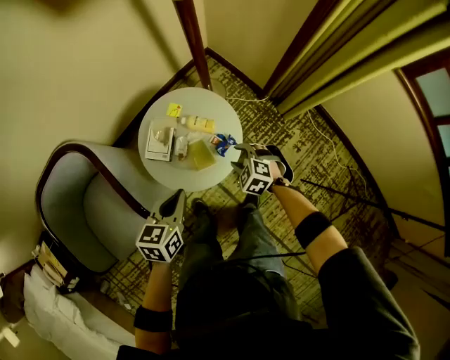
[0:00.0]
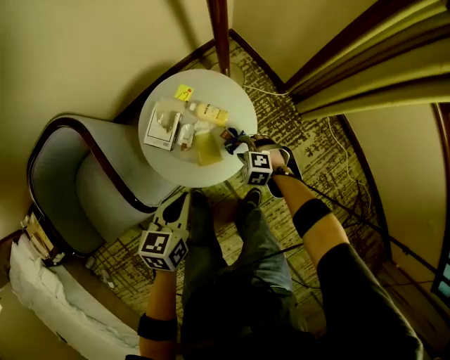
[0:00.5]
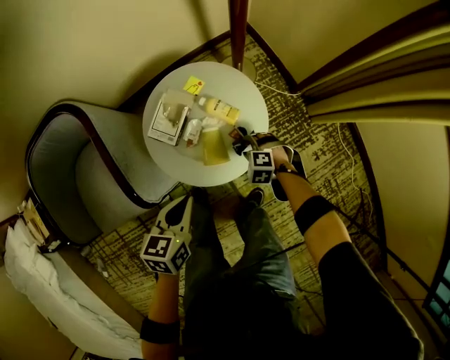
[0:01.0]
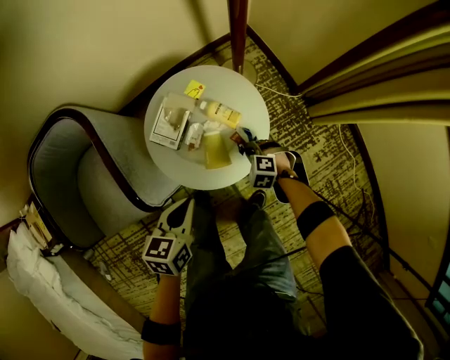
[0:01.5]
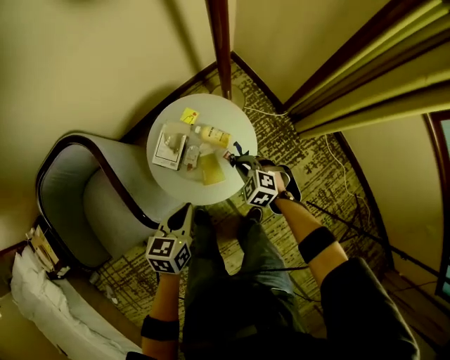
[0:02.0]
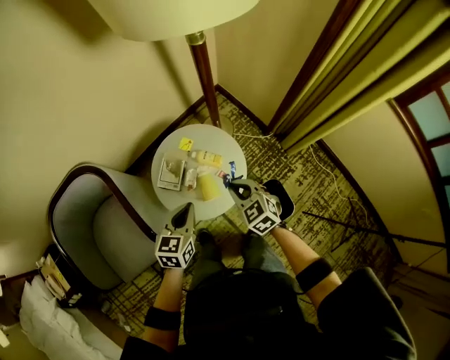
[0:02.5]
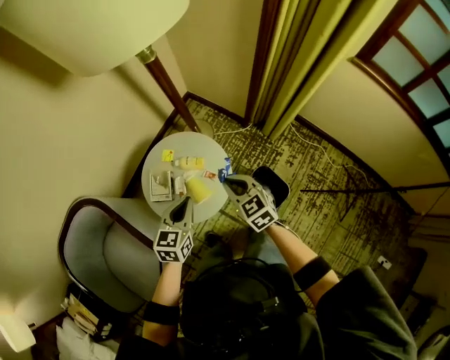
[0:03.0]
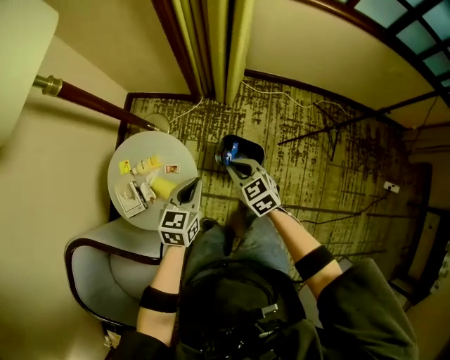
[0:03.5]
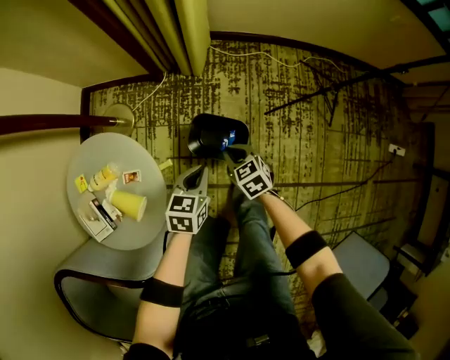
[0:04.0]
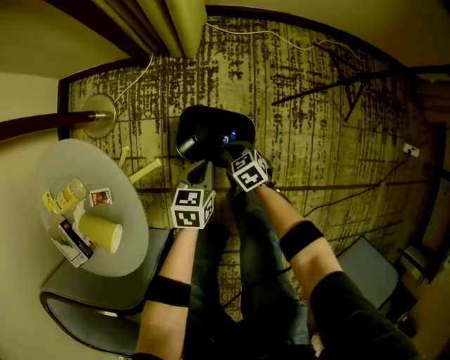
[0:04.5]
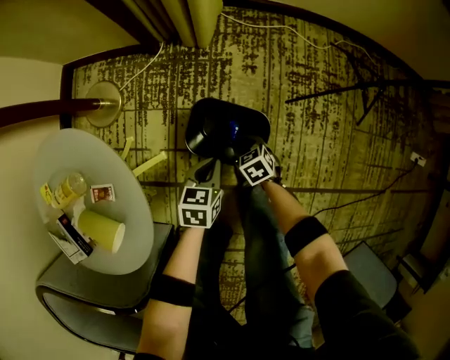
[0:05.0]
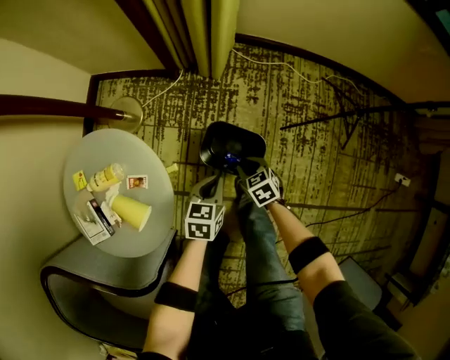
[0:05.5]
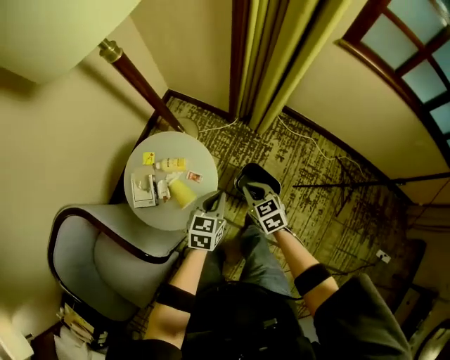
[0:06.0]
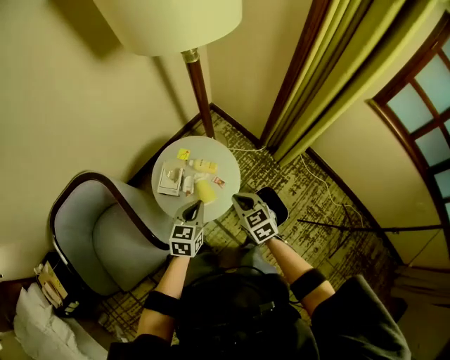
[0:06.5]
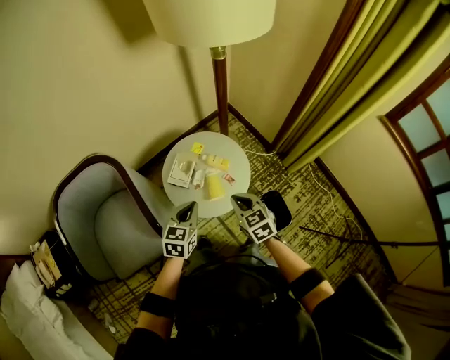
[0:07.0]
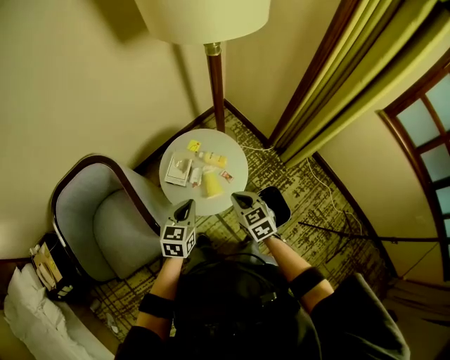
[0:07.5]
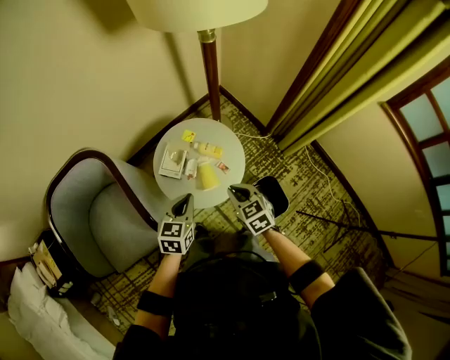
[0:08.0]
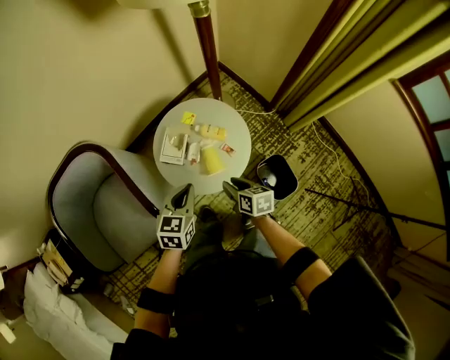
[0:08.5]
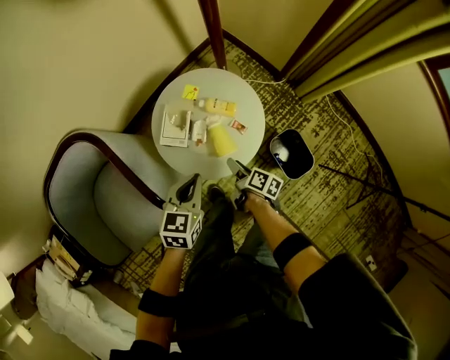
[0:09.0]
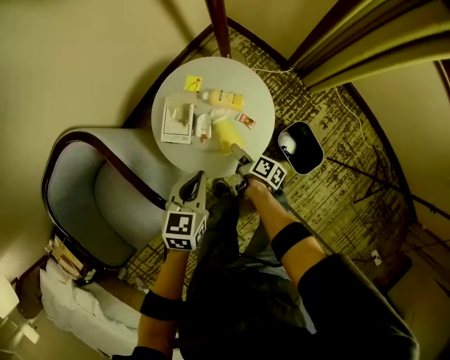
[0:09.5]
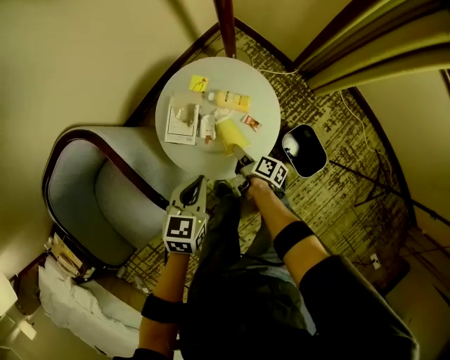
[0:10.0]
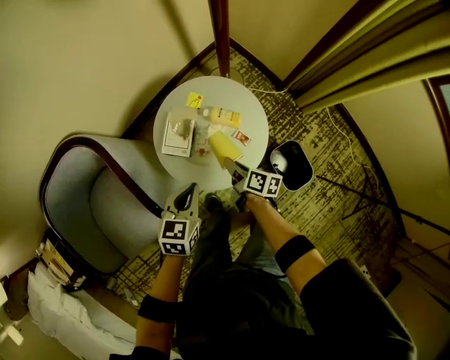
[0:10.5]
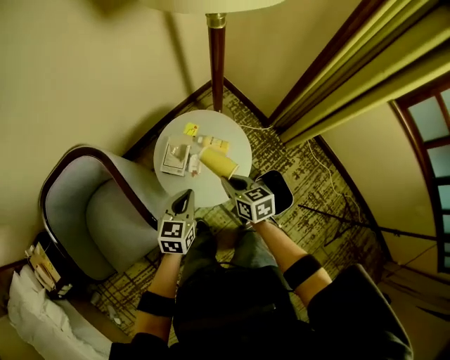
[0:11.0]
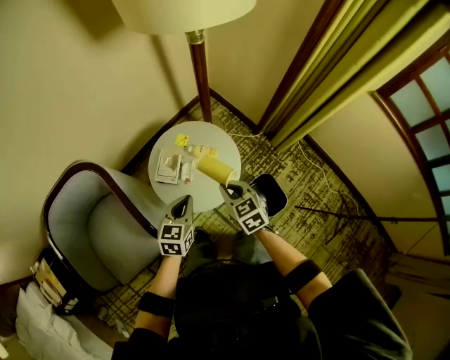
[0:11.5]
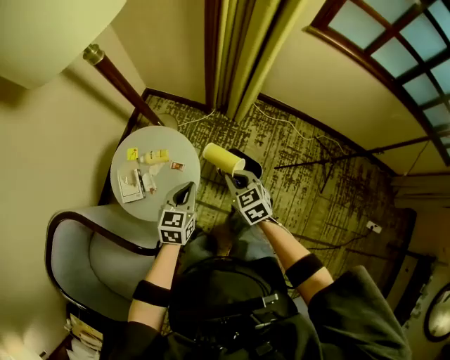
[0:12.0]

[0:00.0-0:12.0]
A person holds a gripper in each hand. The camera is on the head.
0.0 to 2.0 s: The right gripper is displaced forward by some 5 cm, reaches some 15 cm downward, then returns, and closes. The left gripper shifts some 5 cm downward.
2.0 to 4.0 s: The left gripper changes place by some 40 cm, and swivels about 60 degrees; the right gripper travels upward and back again, approximately 25 cm each way, and rolls clockwise, seen from behind, by some 70 degrees.
4.0 to 6.0 s: The grippers both shift upward and to the left by roughly 25 cm. The left gripper rotates approximately 20 degrees. Meanwhile the right gripper changes its angle by some 20 degrees, and opens, then closes again.
6.0 to 8.0 s: The left gripper shifts by some 25 cm, and swivels about 30 degrees. The right gripper changes place by roughly 20 cm, and rotates about 30 degrees.
8.0 to 10.0 s: The right gripper moves downward, roughly 30 cm, rotates around the line of its fingers by approximately 90 degrees, clockwise from behind, and opens, then closes again. Meanwhile the left gripper travels downward by approximately 10 cm.
10.0 to 12.0 s: The right gripper heads upward, covering some 25 cm, and rotates around the line of its fingers by about 70 degrees, counterclockwise from behind. The left gripper moves about 25 cm, and swivels some 30 degrees.

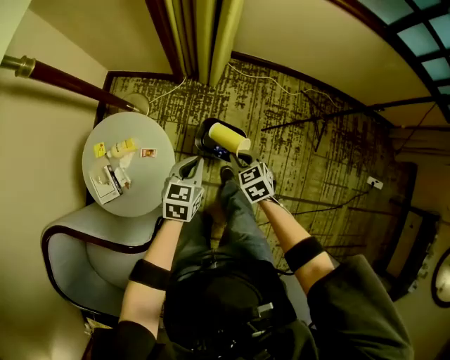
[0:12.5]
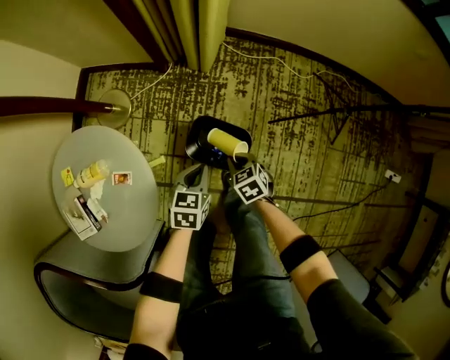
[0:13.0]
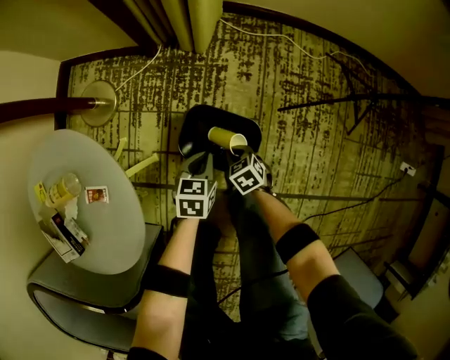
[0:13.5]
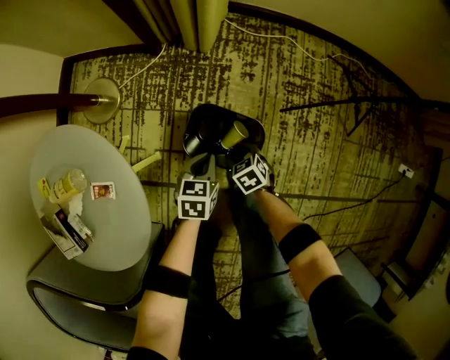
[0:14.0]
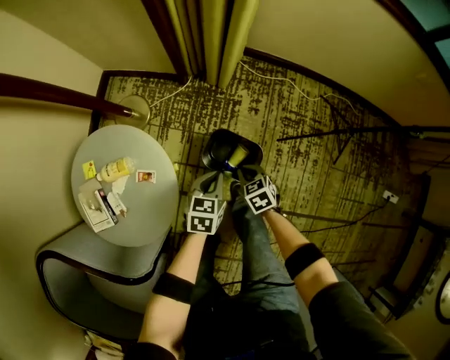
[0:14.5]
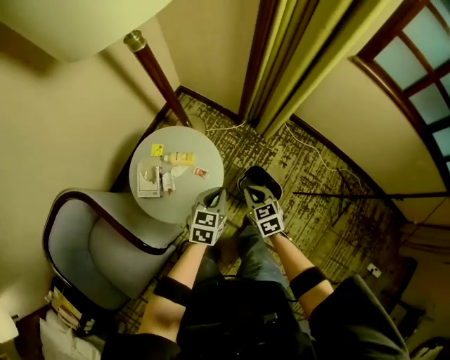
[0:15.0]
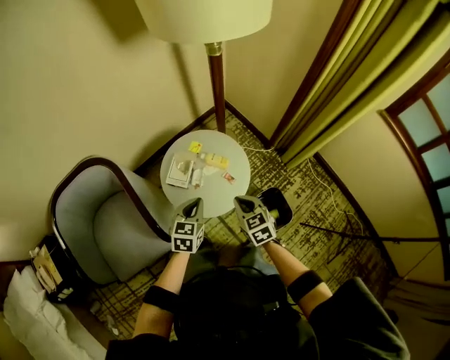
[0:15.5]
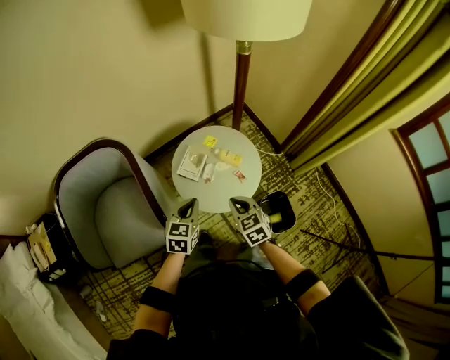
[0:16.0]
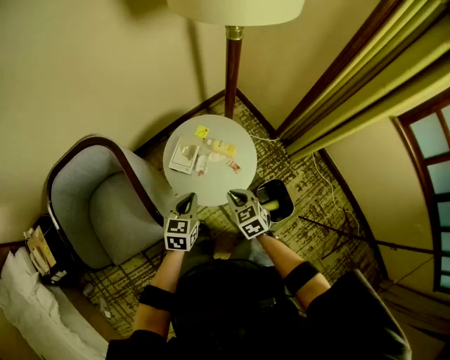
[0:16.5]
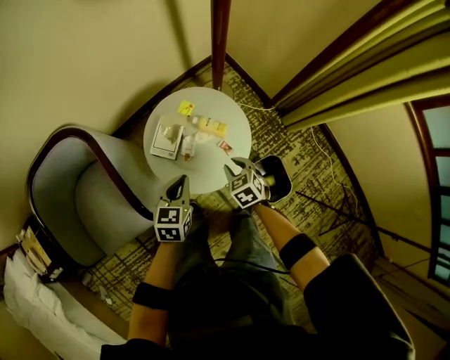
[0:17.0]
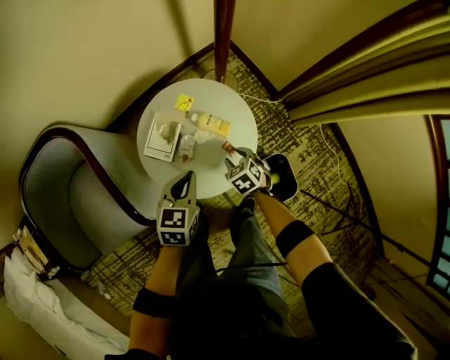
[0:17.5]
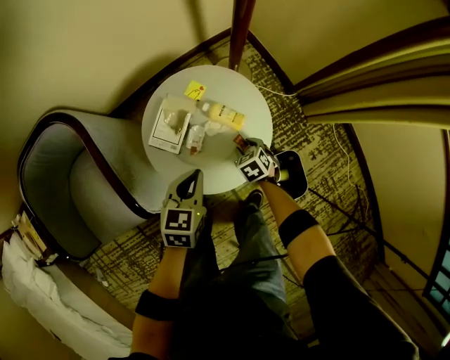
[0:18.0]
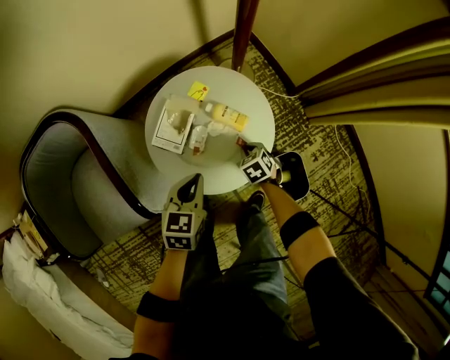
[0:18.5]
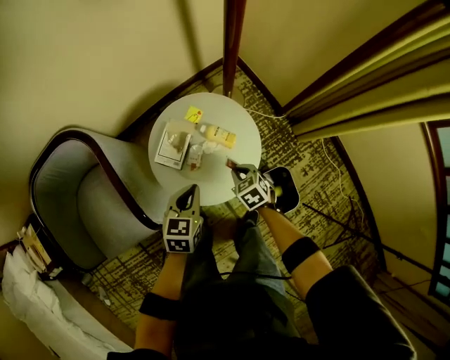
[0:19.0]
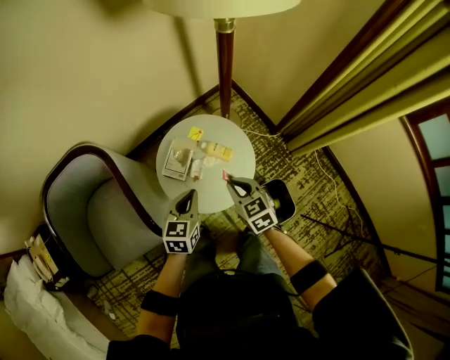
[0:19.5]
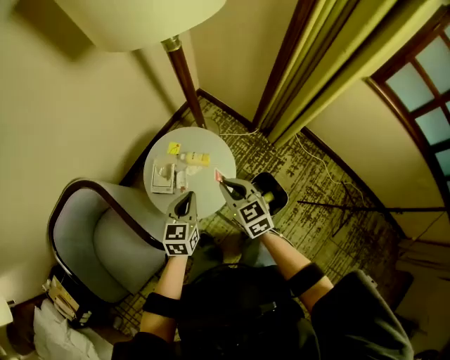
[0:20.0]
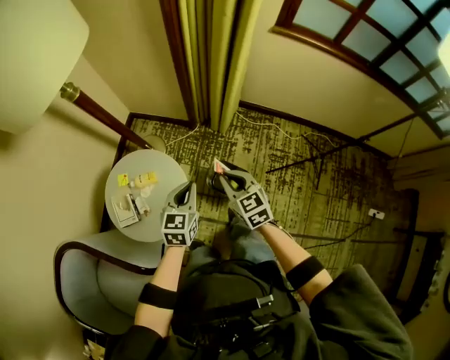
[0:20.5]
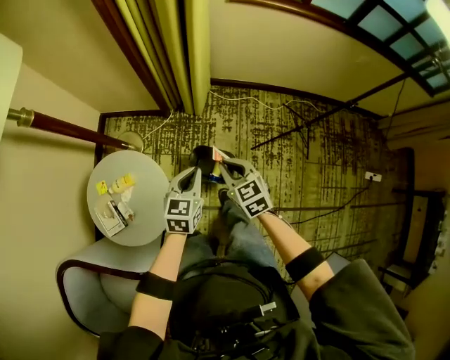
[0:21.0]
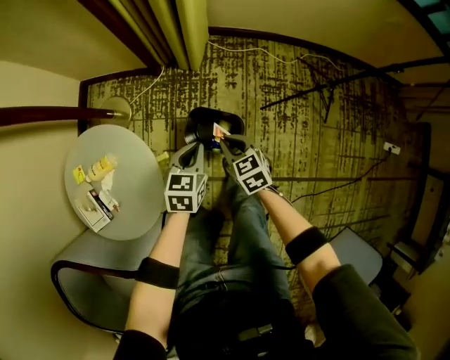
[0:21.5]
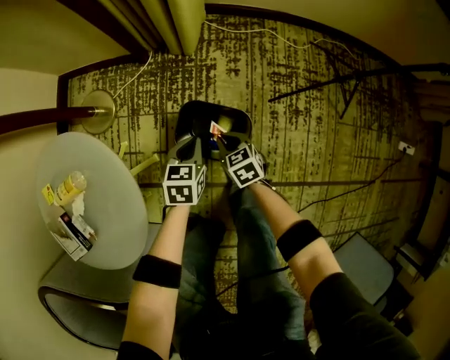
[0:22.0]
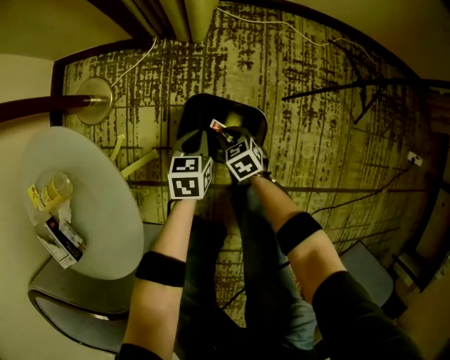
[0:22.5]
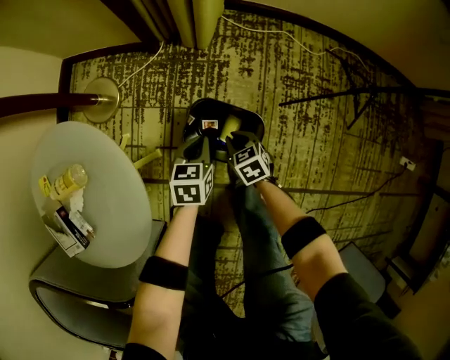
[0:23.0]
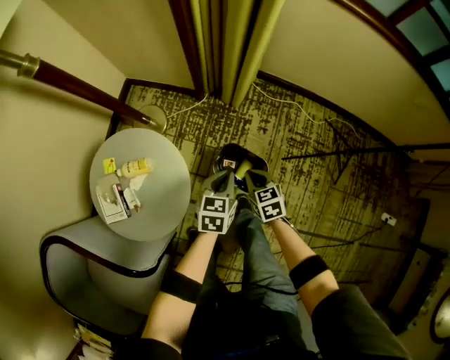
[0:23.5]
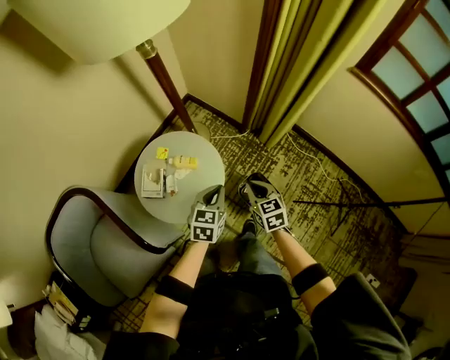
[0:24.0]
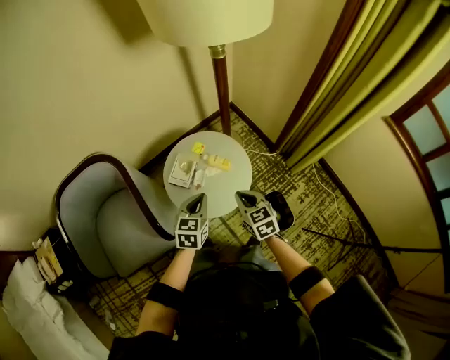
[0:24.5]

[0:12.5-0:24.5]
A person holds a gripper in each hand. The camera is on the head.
12.5 to 14.5 s: The two grippers go roughly 20 cm downward. The right gripper opens, then closes once more.
14.5 to 16.5 s: The right gripper moves some 50 cm, and swivels some 50 degrees. Meanwhile the left gripper shifts by approximately 50 cm, and turns by roughly 50 degrees.
16.5 to 18.5 s: The left gripper heads downward and forward, covering roughly 15 cm. Meanwhile the right gripper moves downward, some 30 cm, swivels roughly 20 degrees, and opens, then closes once more.
18.5 to 20.5 s: The right gripper goes approximately 35 cm upward, and tips its fingers upward by about 40 degrees; the left gripper shifts by about 35 cm, and turns by approximately 40 degrees.
20.5 to 22.5 s: The two grippers go some 60 cm downward. The left gripper rotates some 20 degrees. Meanwhile the right gripper changes its angle by approximately 30 degrees.
22.5 to 24.5 s: Both grippers move upward, approximately 60 cm. The left gripper turns by roughly 50 degrees. Meanwhile the right gripper changes its angle by roughly 50 degrees.

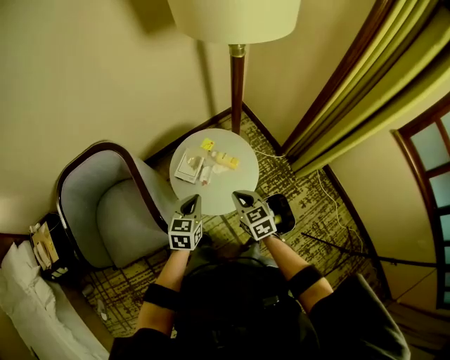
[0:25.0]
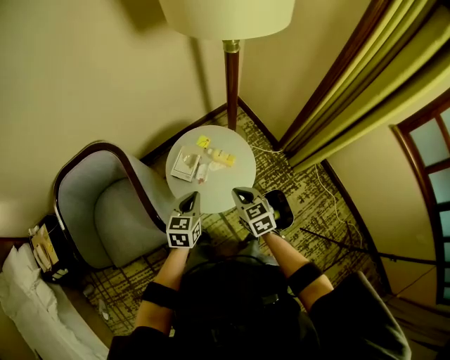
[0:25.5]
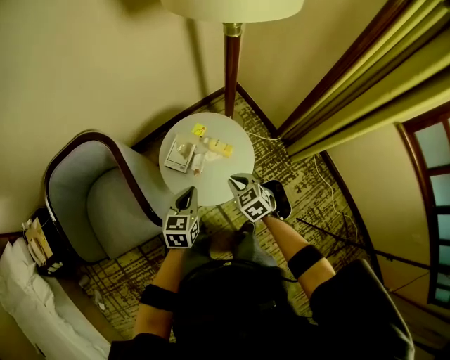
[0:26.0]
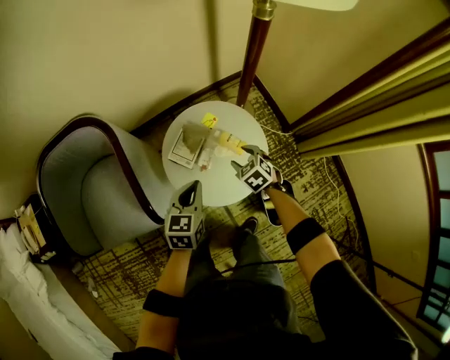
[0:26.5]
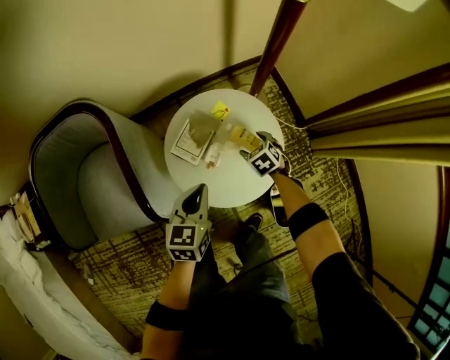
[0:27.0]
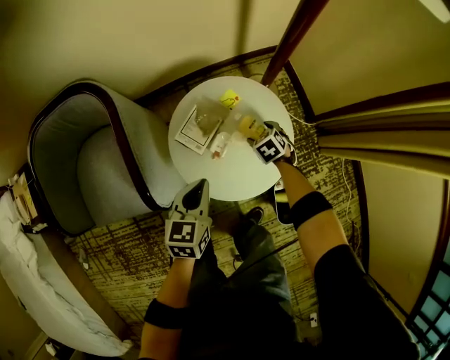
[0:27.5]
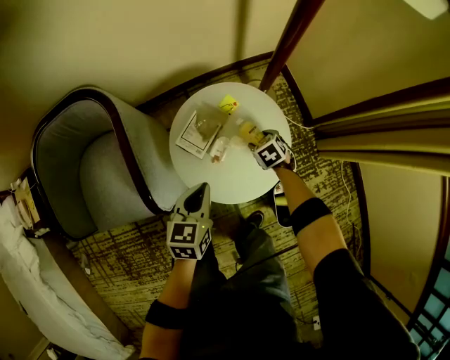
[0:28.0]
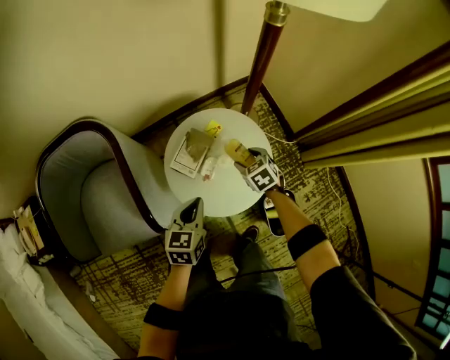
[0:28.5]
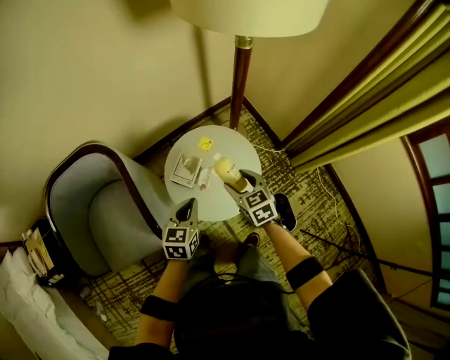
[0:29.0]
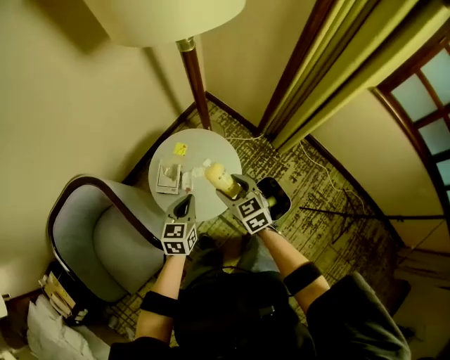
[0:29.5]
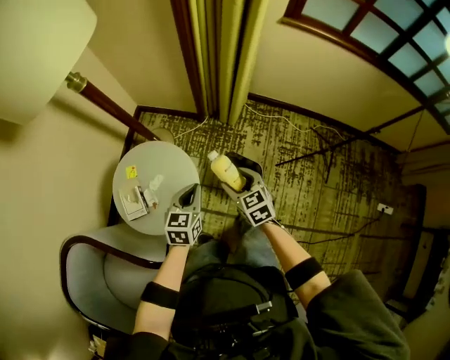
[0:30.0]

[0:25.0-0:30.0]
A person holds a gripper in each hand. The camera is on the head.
25.0 to 27.5 s: The right gripper is displaced downward by some 30 cm, tilts its fingers approximately 50 degrees downward, and opens. The left gripper is displaced downward by some 15 cm.
27.5 to 30.0 s: The left gripper changes place by about 30 cm, and changes its angle by approximately 50 degrees. Meanwhile the right gripper moves upward, about 30 cm, and angles its fingers upward, by roughly 40 degrees.
